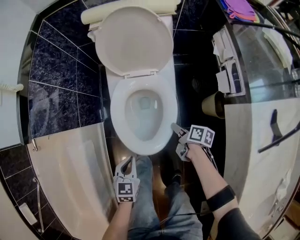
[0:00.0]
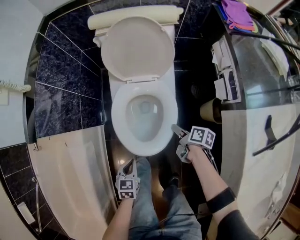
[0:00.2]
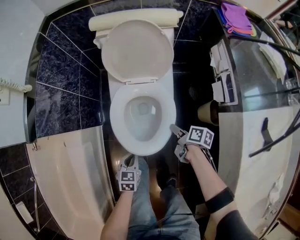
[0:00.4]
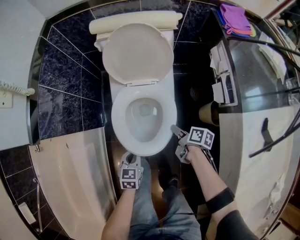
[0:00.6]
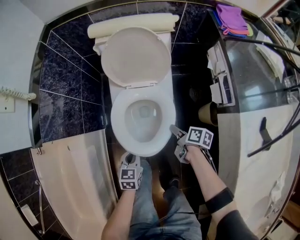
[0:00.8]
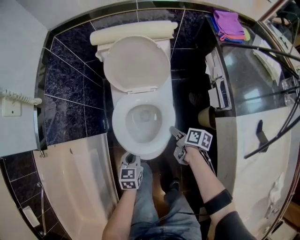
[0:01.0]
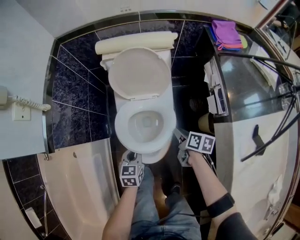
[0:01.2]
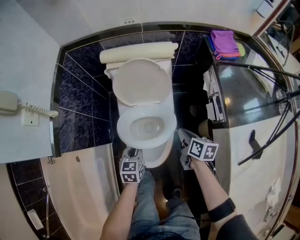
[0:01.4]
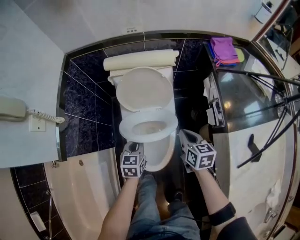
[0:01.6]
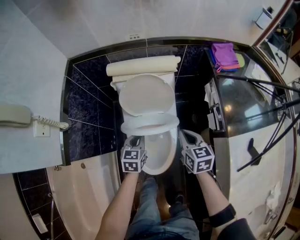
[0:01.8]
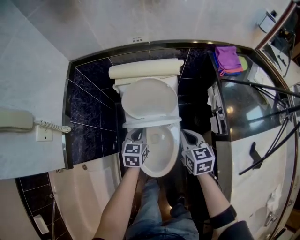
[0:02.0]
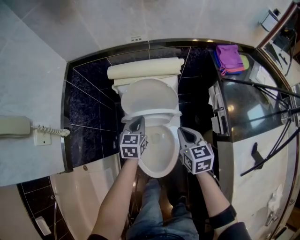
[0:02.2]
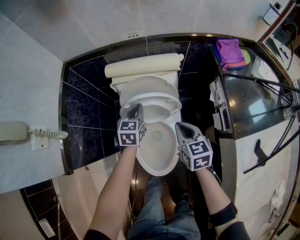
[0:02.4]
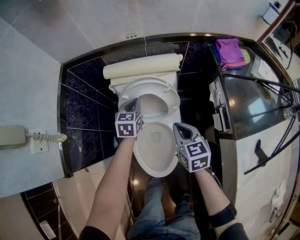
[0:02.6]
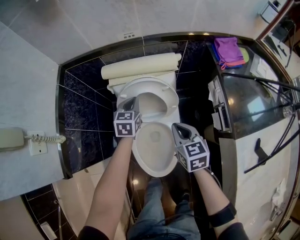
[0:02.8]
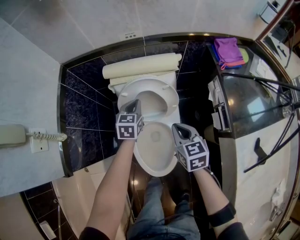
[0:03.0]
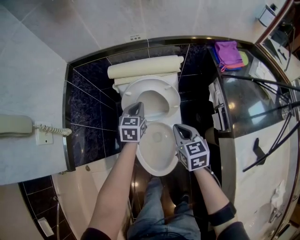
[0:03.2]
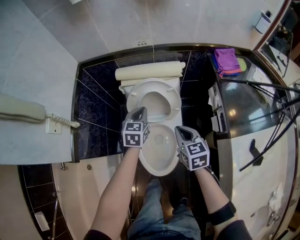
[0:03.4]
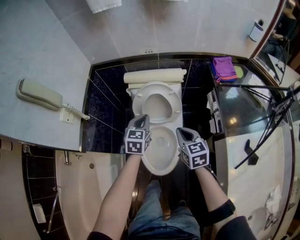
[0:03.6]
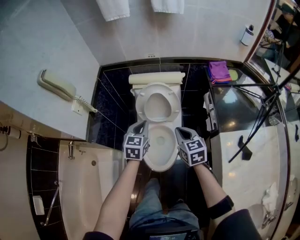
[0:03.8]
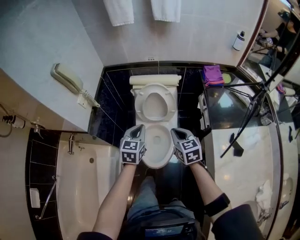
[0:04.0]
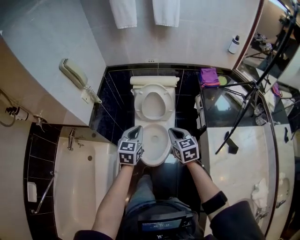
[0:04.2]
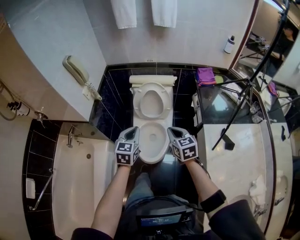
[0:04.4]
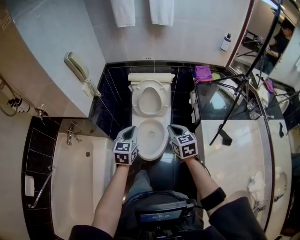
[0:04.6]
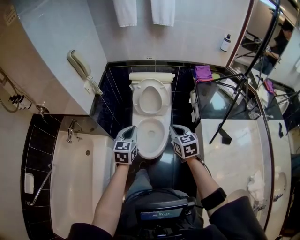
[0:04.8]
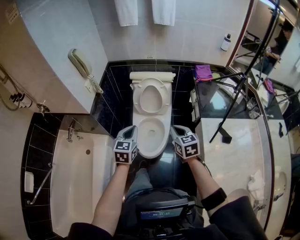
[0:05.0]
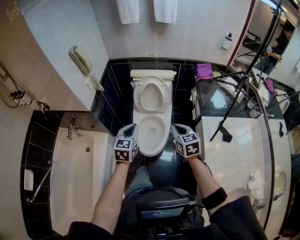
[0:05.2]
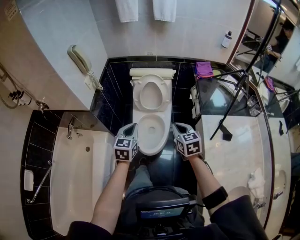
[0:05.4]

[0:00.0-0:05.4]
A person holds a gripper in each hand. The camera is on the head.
0:00.0 to 0:01.4: The left gripper shifts roughly 20 cm forward and upward; the right gripper moves upward and forward, roughly 25 cm, changes its angle by roughly 30 degrees, and closes its fingers.
0:01.4 to 0:02.8: The right gripper goes about 15 cm forward, upward and to the left, and rotates some 30 degrees; the left gripper moves forward, about 30 cm.
0:02.8 to 0:04.0: The right gripper moves backward and upward, about 25 cm, while the left gripper shifts approximately 40 cm backward and upward.
0:04.0 to 0:05.4: Both grippers travel together backward, some 15 cm.

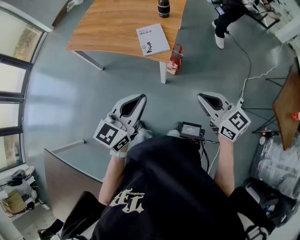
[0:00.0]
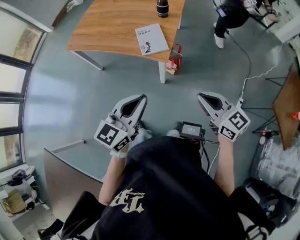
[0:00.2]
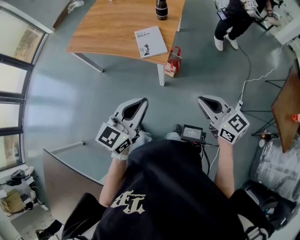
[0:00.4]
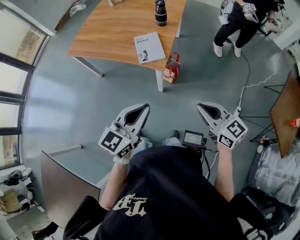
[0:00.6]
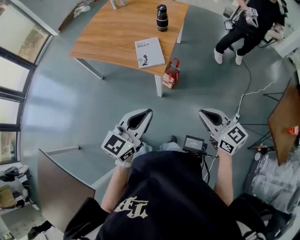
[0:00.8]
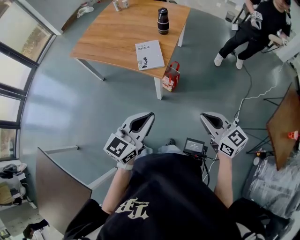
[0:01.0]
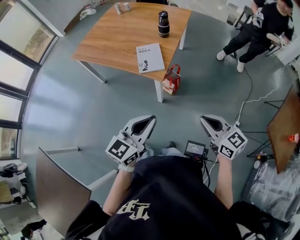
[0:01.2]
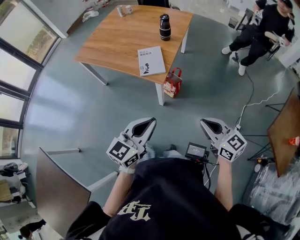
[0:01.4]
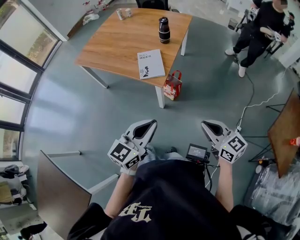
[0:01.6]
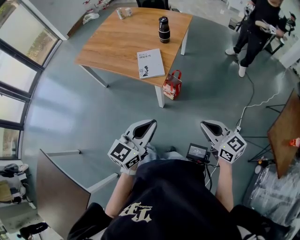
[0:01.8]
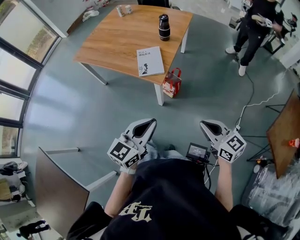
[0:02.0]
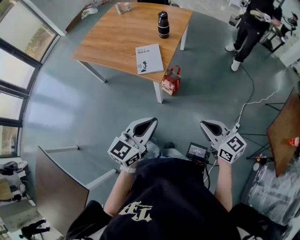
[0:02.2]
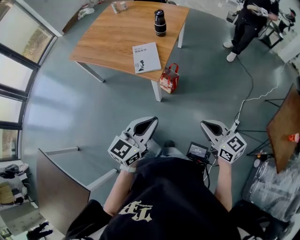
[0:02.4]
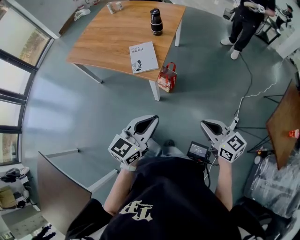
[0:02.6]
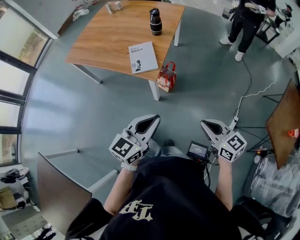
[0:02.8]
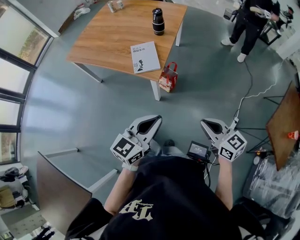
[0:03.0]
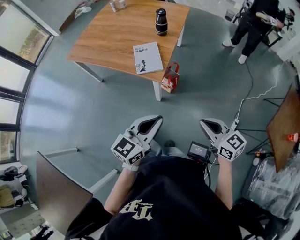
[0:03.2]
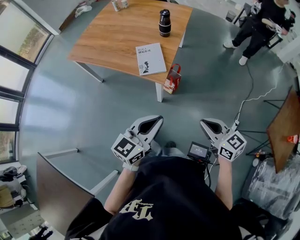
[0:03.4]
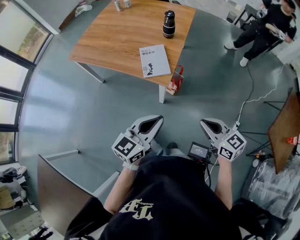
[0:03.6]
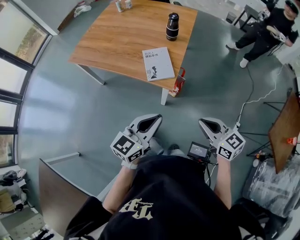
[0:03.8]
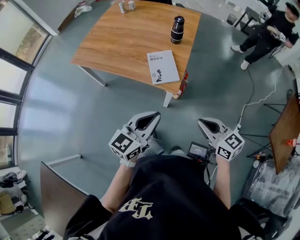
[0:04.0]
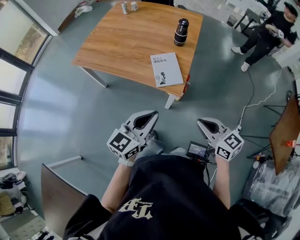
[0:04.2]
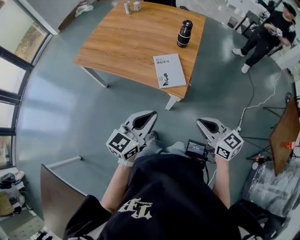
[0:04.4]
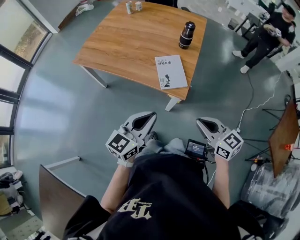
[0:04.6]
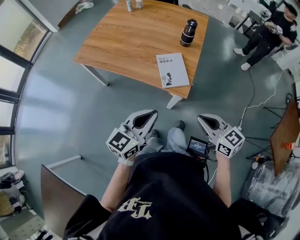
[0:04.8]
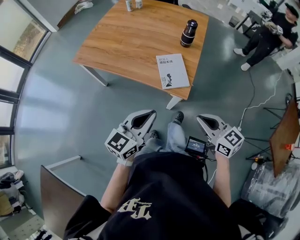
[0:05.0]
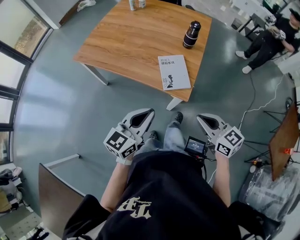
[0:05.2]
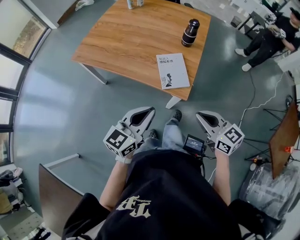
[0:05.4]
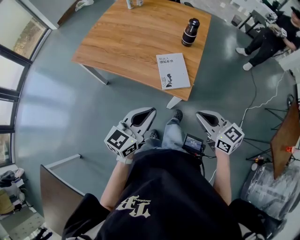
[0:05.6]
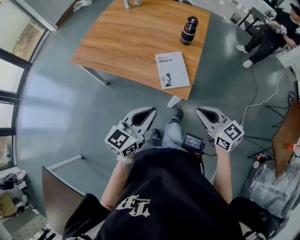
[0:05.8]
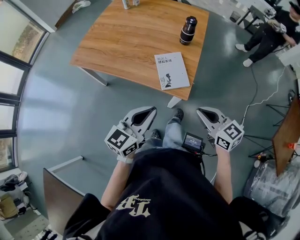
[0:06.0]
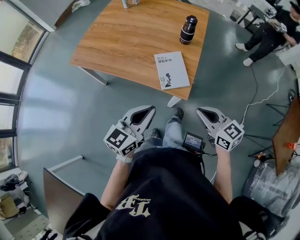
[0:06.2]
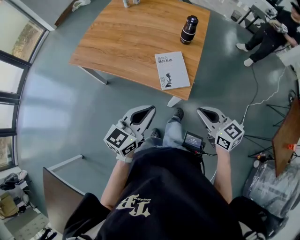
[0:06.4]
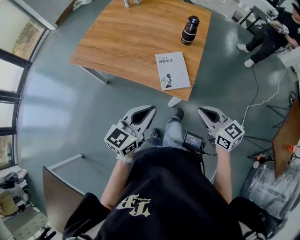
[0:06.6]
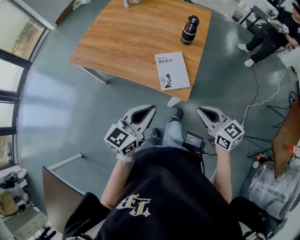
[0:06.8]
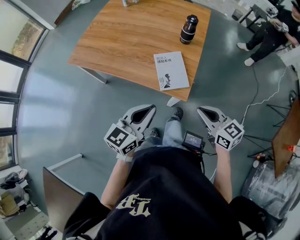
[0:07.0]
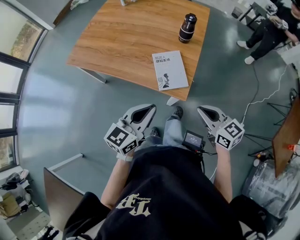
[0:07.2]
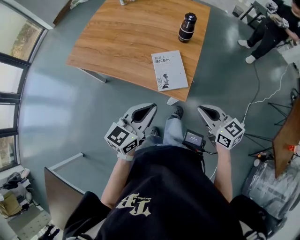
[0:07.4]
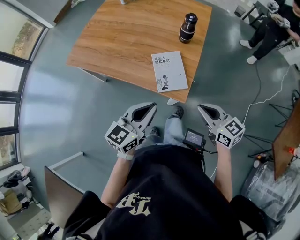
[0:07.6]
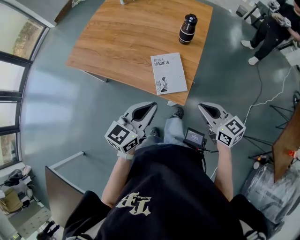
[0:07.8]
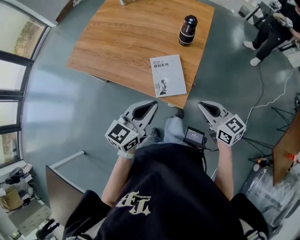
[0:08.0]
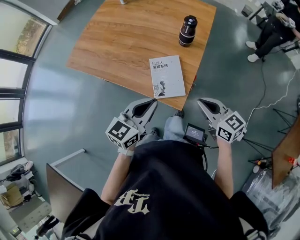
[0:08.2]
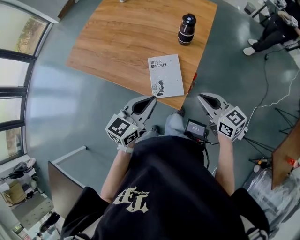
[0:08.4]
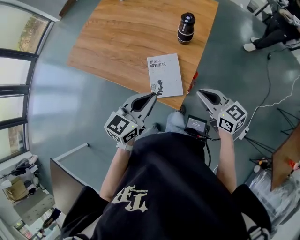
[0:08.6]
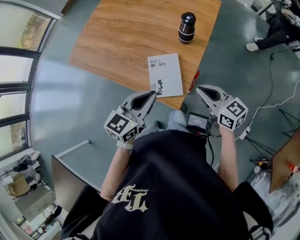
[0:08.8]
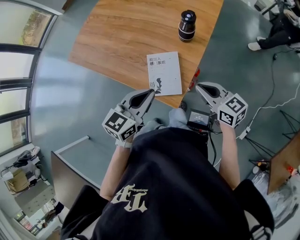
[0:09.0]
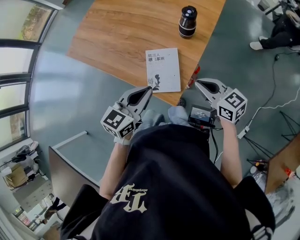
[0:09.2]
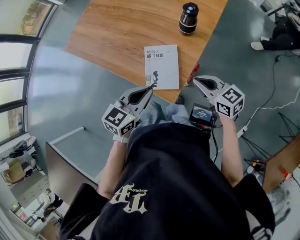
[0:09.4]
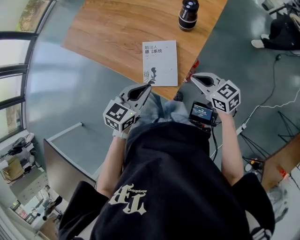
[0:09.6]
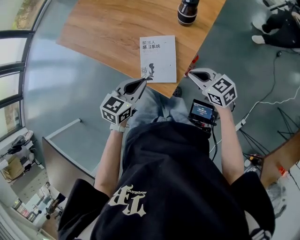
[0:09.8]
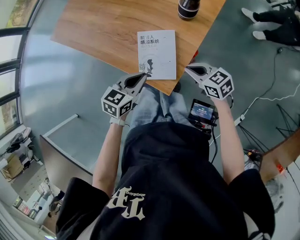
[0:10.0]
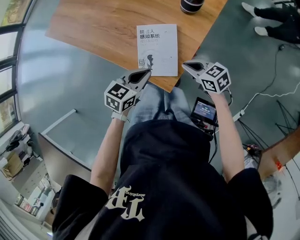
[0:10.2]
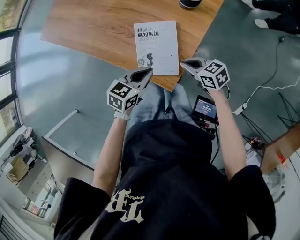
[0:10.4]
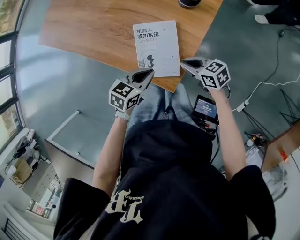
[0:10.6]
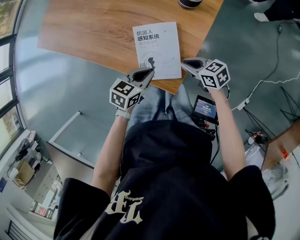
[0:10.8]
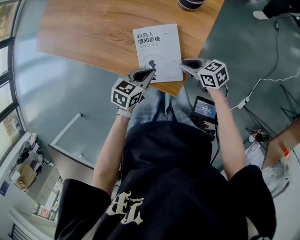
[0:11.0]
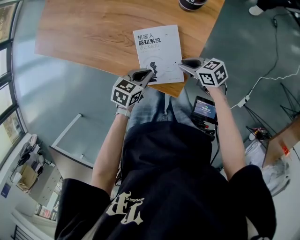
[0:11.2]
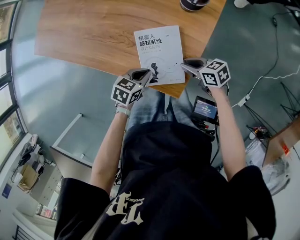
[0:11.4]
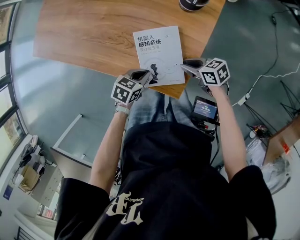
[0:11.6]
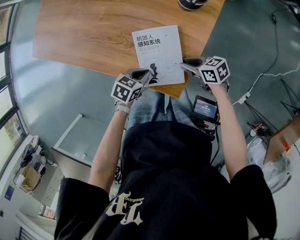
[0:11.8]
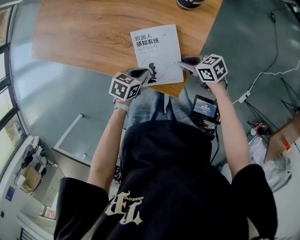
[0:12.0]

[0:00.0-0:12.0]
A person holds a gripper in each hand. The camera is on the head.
0:00.0 to 0:01.6: The two grippers go about 10 cm to the right.
0:01.6 to 0:03.0: There are only small adjustments of the grippers.
0:03.0 to 0:04.4: The grippers both shift to the left and forward by roughly 25 cm.
0:04.4 to 0:06.0: Both grippers travel together forward, about 5 cm.
0:06.0 to 0:07.6: Both grippers travel together forward, roughly 5 cm.
0:07.6 to 0:09.0: Both grippers travel together forward and to the right, about 15 cm.
0:09.0 to 0:10.4: The grippers both shift downward by roughly 20 cm. The left gripper changes its angle by approximately 20 degrees; the right gripper changes its angle by some 30 degrees.
0:10.4 to 0:12.0: The right gripper travels downward by about 5 cm, while the left gripper goes about 10 cm downward, and turns by roughly 20 degrees.

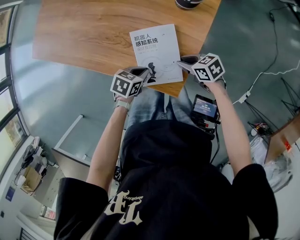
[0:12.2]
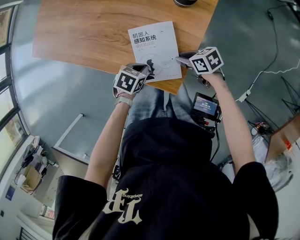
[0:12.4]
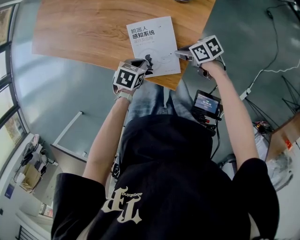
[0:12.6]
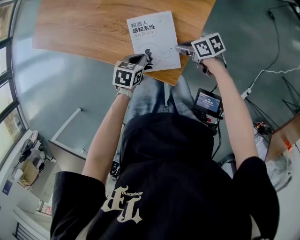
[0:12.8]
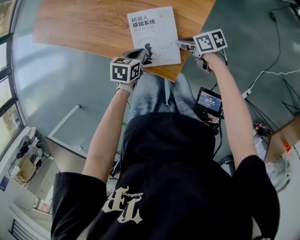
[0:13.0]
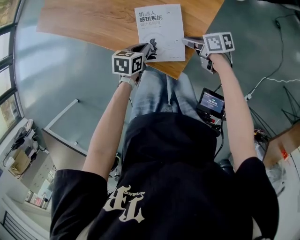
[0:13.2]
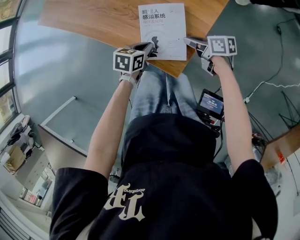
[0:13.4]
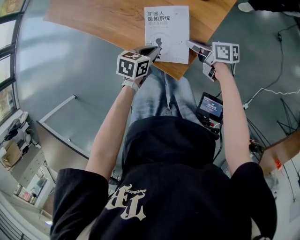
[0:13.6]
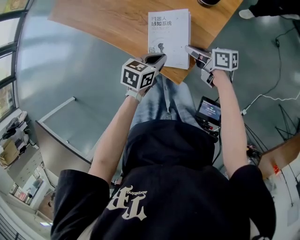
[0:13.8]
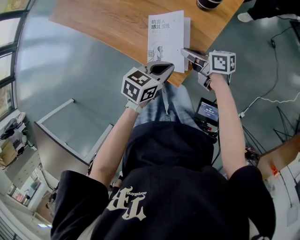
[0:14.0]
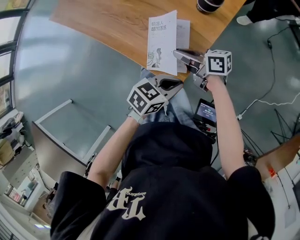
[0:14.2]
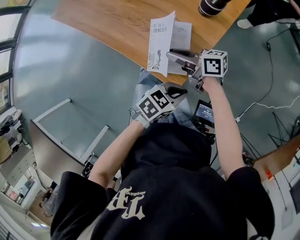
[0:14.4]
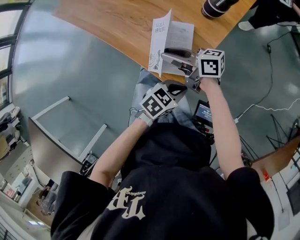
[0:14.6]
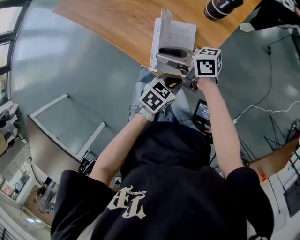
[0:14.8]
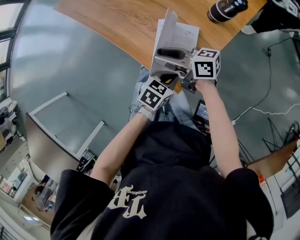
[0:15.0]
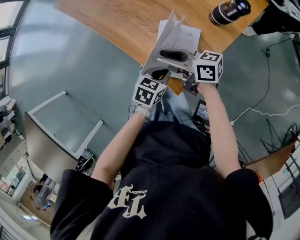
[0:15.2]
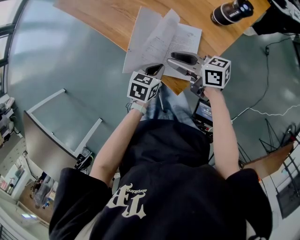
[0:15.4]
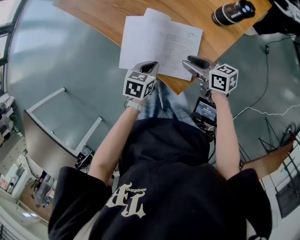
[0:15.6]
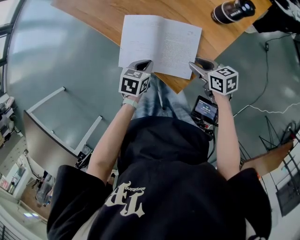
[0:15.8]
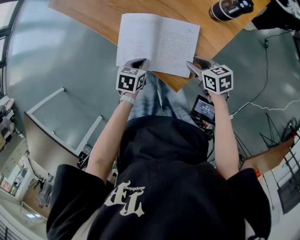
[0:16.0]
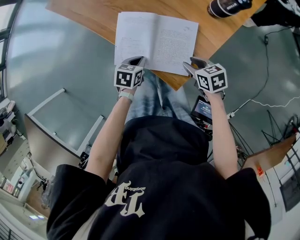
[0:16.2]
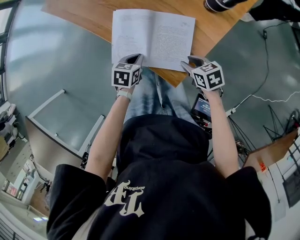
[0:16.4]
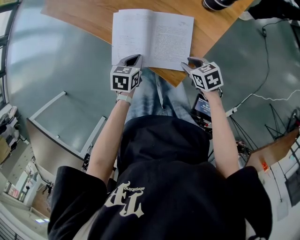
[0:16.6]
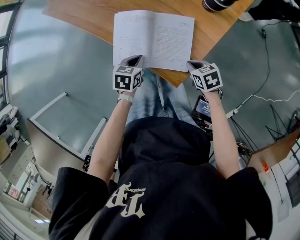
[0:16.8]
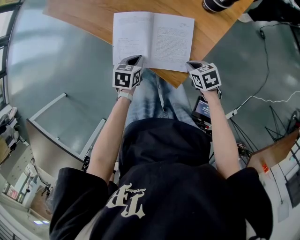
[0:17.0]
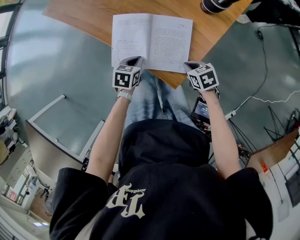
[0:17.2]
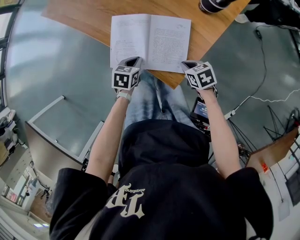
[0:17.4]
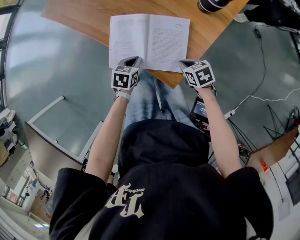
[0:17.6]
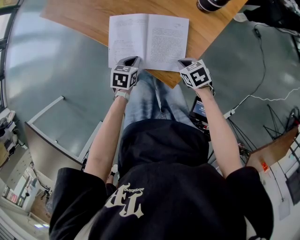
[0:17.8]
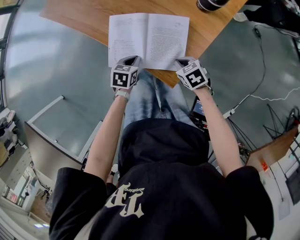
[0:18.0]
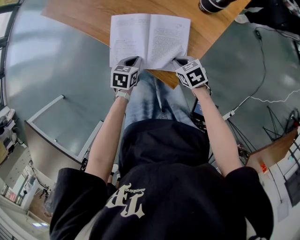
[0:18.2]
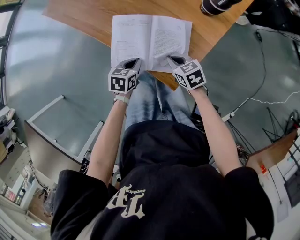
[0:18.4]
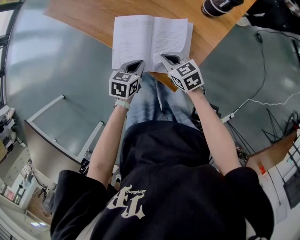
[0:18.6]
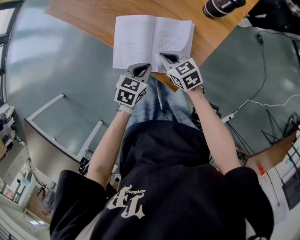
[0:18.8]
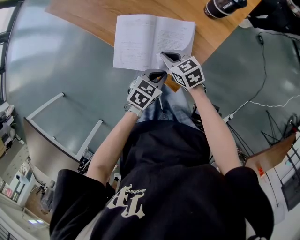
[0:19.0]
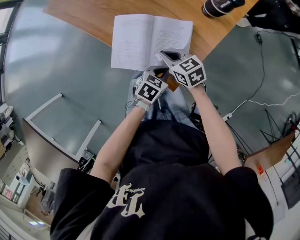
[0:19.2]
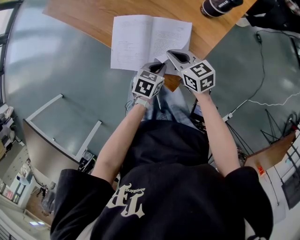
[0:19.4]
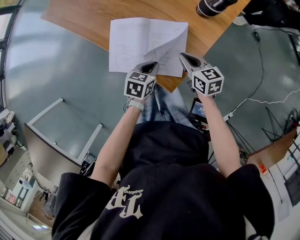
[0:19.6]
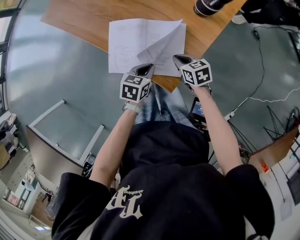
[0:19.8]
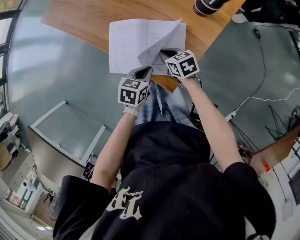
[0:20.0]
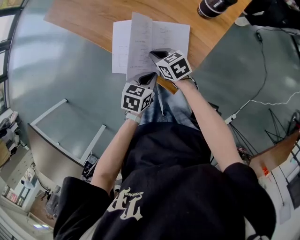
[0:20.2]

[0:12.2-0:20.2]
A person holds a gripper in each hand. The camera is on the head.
0:12.2 to 0:13.8: The grippers both shift upward by approximately 5 cm. The right gripper changes its angle by about 30 degrees, while the left gripper rotates about 30 degrees.
0:13.8 to 0:15.4: The right gripper shifts by roughly 15 cm, changes its angle by some 30 degrees, and opens up, while the left gripper goes upward and returns, about 5 cm each way.
0:15.4 to 0:17.0: The right gripper shifts about 20 cm downward, to the right and backward, points its fingers some 50 degrees further downward, and closes its fingers; the left gripper heads to the left and downward, covering about 10 cm.
0:17.0 to 0:18.6: The right gripper heads to the left, forward and upward, covering roughly 15 cm, and turns by roughly 20 degrees.
0:18.6 to 0:20.2: The left gripper goes roughly 5 cm to the right, while the right gripper travels to the right and back again, some 10 cm each way.
